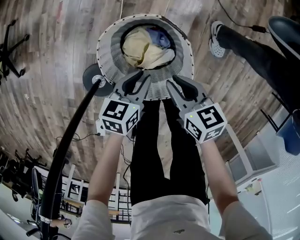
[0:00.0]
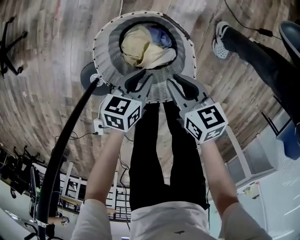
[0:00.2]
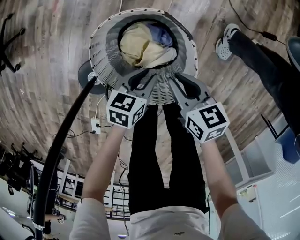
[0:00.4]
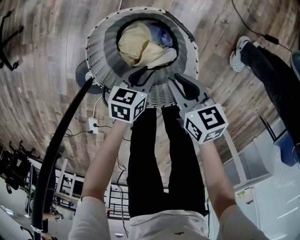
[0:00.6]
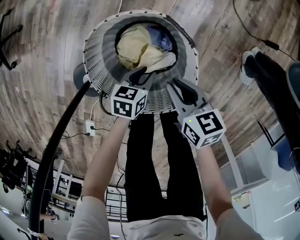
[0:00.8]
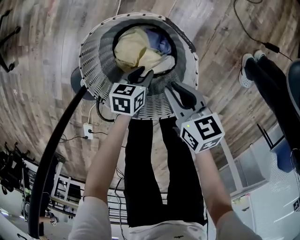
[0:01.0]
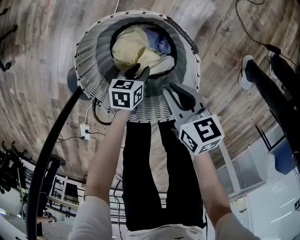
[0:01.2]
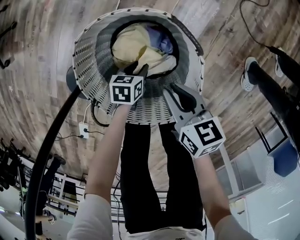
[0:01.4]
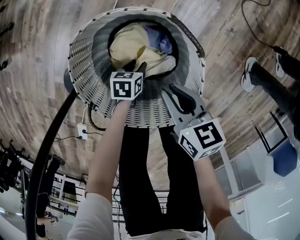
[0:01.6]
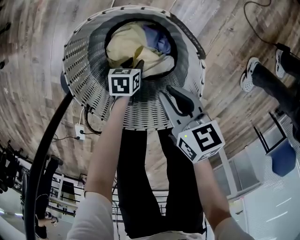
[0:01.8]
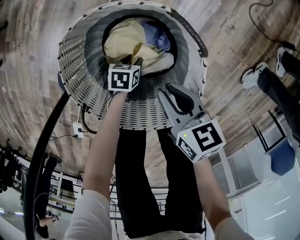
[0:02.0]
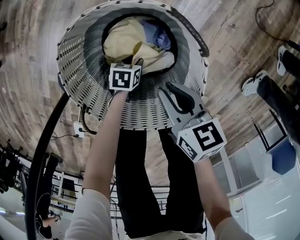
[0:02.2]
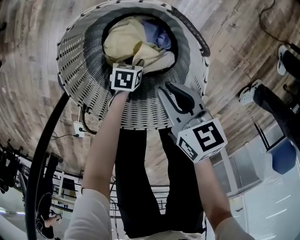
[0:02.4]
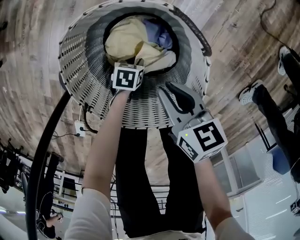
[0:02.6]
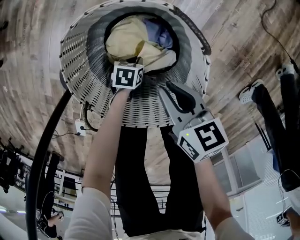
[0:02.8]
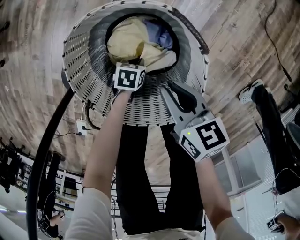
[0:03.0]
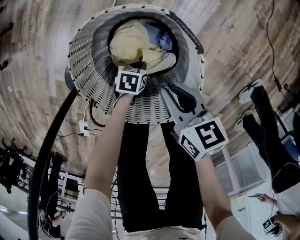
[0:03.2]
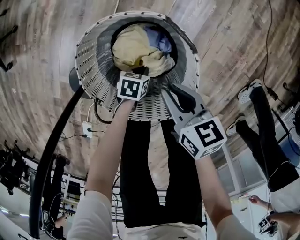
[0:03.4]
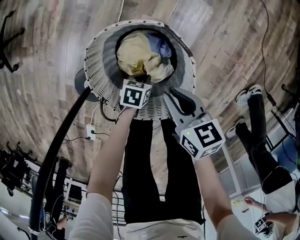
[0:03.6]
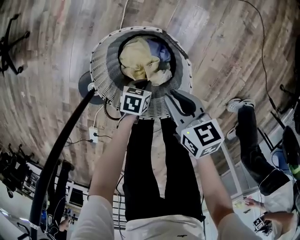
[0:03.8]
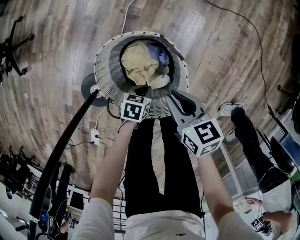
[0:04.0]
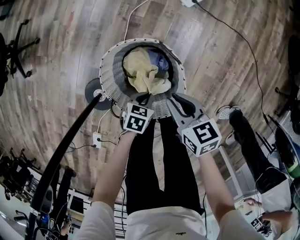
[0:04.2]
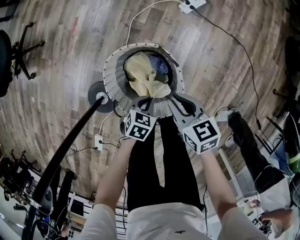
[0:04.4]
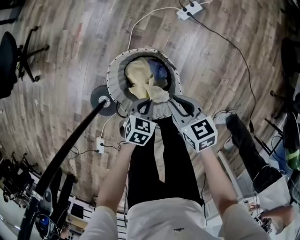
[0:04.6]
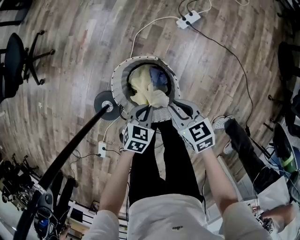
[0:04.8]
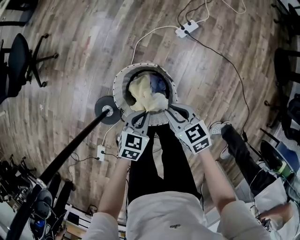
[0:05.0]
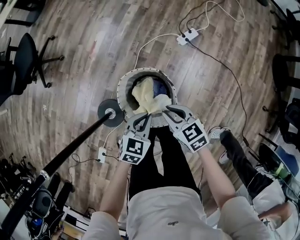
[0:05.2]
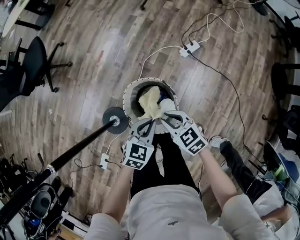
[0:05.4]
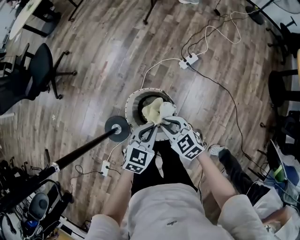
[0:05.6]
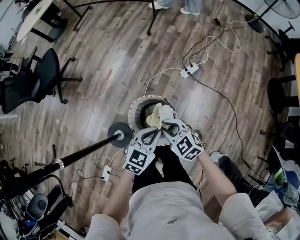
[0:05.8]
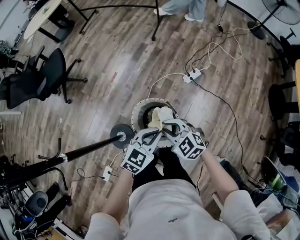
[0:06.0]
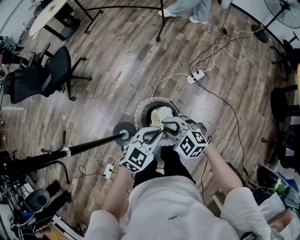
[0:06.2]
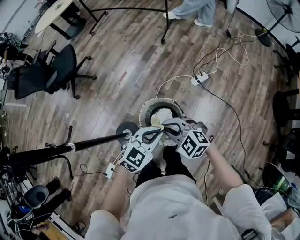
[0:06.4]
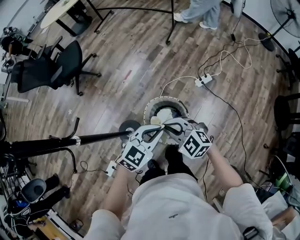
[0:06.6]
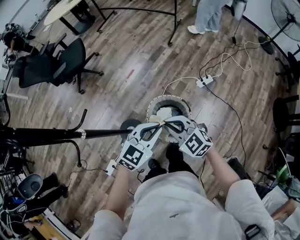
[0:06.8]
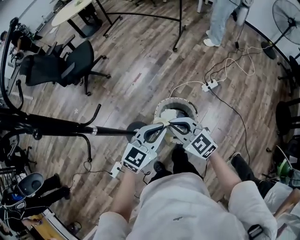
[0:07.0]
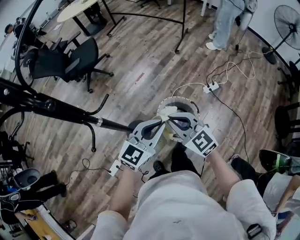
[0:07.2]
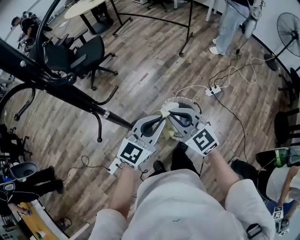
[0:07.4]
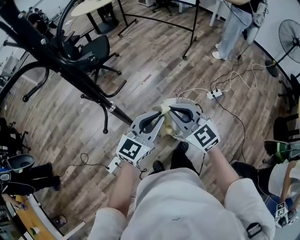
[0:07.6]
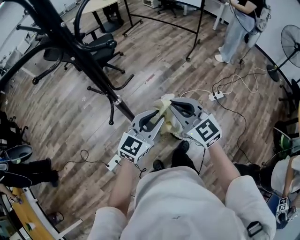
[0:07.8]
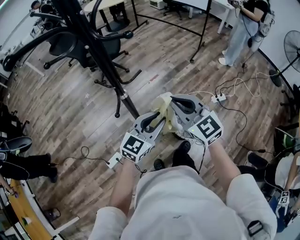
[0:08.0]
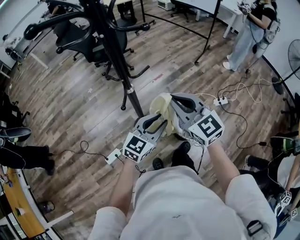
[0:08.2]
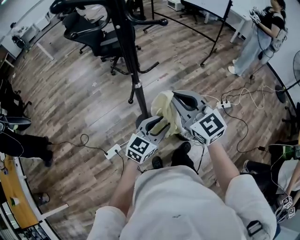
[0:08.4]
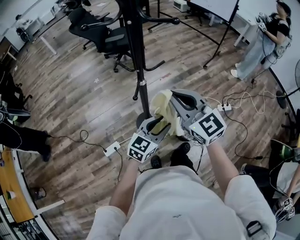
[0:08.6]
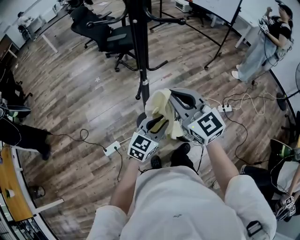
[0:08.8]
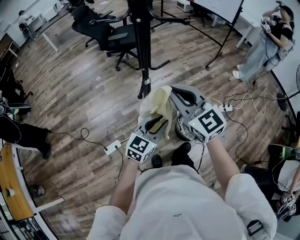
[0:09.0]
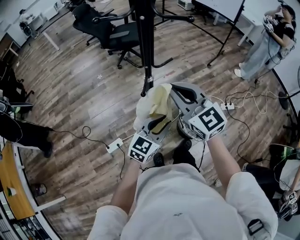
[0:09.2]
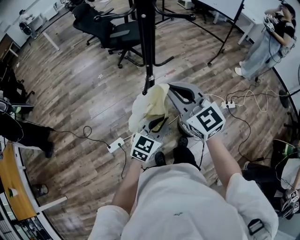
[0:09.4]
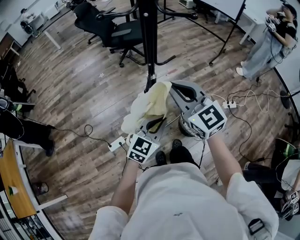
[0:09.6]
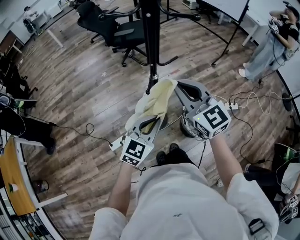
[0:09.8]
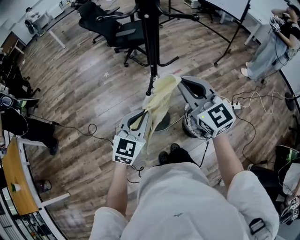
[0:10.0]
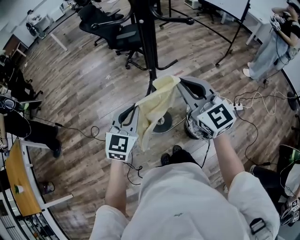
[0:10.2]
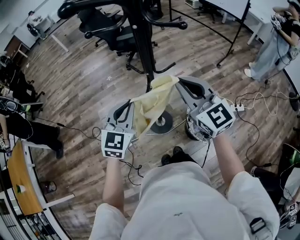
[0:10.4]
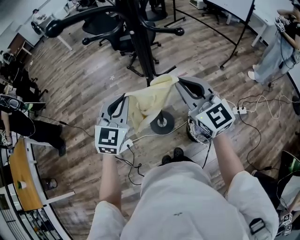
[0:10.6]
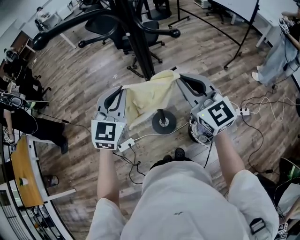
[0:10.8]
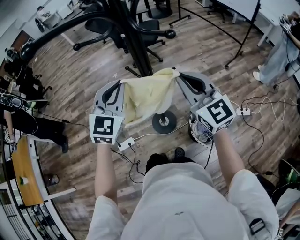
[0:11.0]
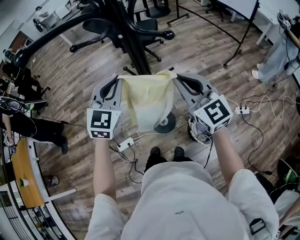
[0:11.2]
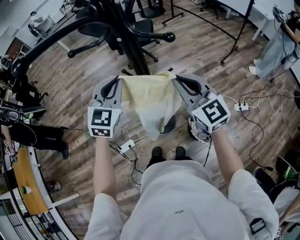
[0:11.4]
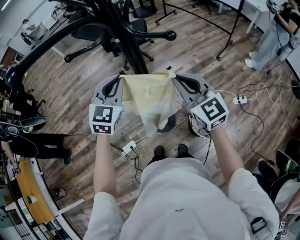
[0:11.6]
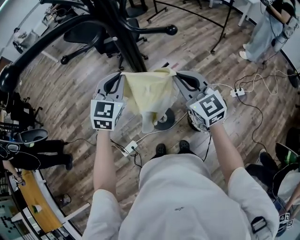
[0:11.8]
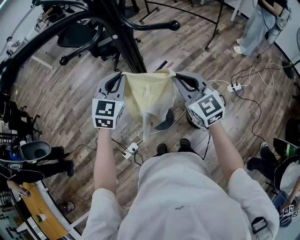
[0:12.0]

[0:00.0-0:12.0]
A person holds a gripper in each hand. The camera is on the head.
0:00.0 to 0:01.6: The right gripper heads downward, covering some 15 cm, while the left gripper goes about 30 cm downward, and swivels approximately 30 degrees.
0:01.6 to 0:03.0: The left gripper closes its fingers.
0:03.0 to 0:04.4: The left gripper goes some 30 cm upward, and turns by approximately 30 degrees, while the right gripper moves upward, approximately 20 cm.
0:04.4 to 0:06.0: The right gripper heads upward, covering about 25 cm, and rotates around the line of its fingers by some 50 degrees, counterclockwise from behind. The left gripper heads upward, covering approximately 40 cm, and changes its angle by some 40 degrees.
0:06.0 to 0:07.6: The grippers both shift to the left, upward and backward by some 30 cm. The left gripper swivels about 30 degrees, while the right gripper rotates roughly 20 degrees.
0:07.6 to 0:09.0: The right gripper is displaced to the left and upward by about 15 cm. Meanwhile the left gripper moves to the left, backward and downward, about 15 cm.
0:09.0 to 0:10.4: The left gripper shifts approximately 20 cm to the left, upward and forward, and turns by about 30 degrees.
0:10.4 to 0:12.0: The right gripper is displaced forward and downward by roughly 10 cm, while the left gripper shifts about 15 cm forward.

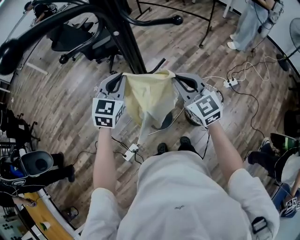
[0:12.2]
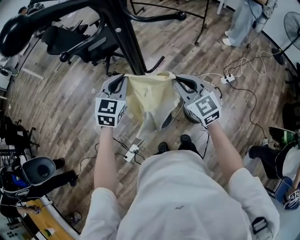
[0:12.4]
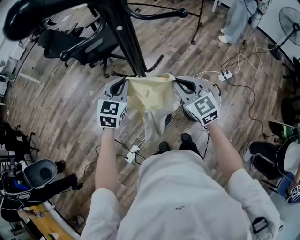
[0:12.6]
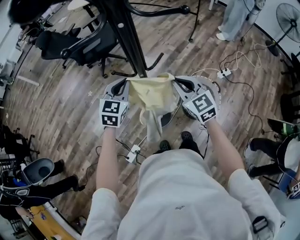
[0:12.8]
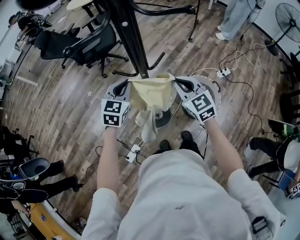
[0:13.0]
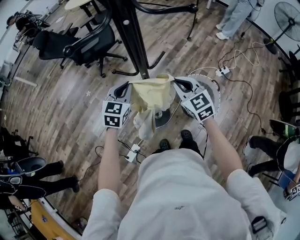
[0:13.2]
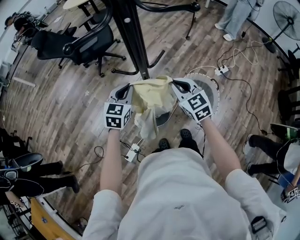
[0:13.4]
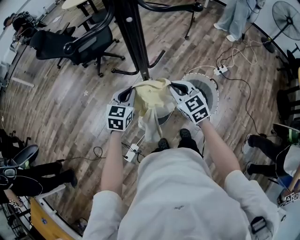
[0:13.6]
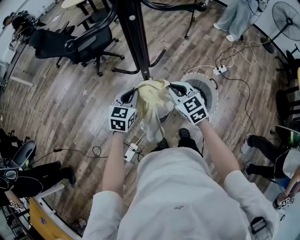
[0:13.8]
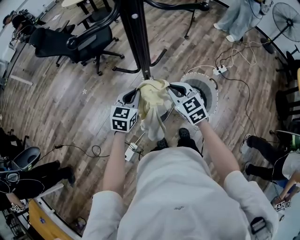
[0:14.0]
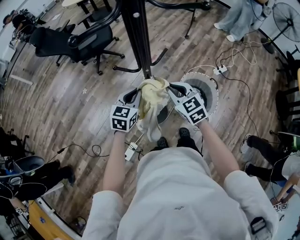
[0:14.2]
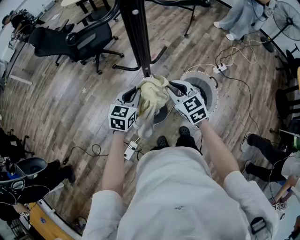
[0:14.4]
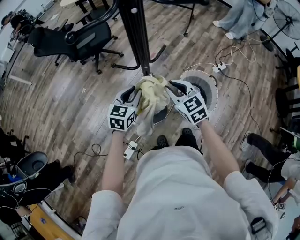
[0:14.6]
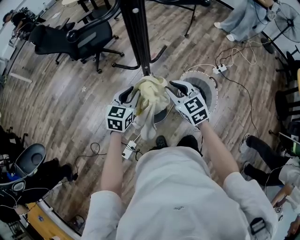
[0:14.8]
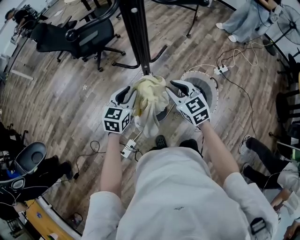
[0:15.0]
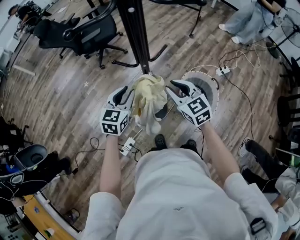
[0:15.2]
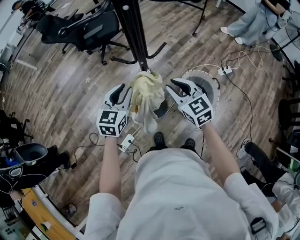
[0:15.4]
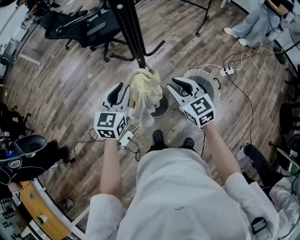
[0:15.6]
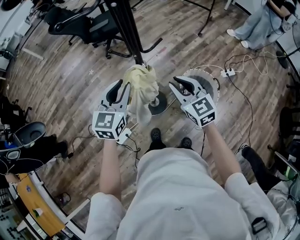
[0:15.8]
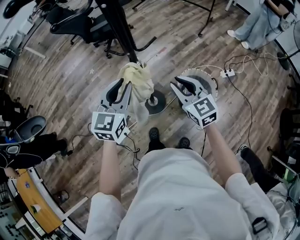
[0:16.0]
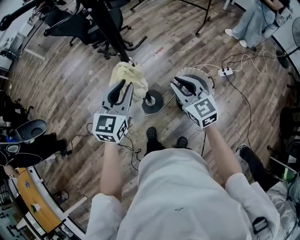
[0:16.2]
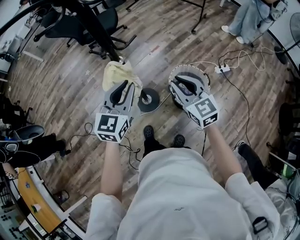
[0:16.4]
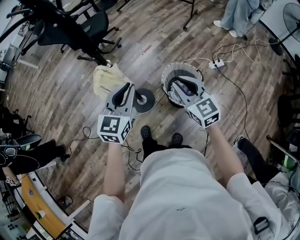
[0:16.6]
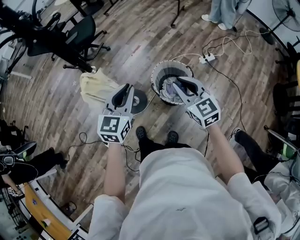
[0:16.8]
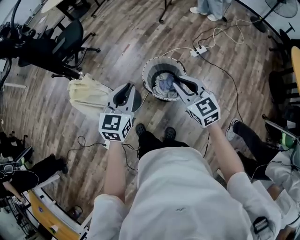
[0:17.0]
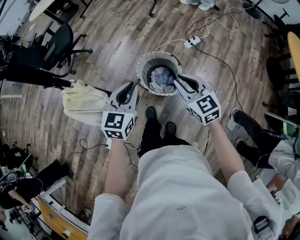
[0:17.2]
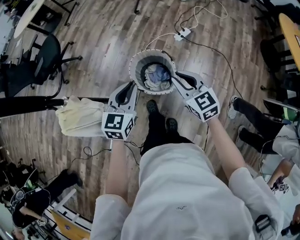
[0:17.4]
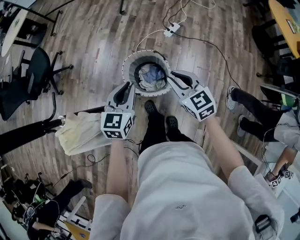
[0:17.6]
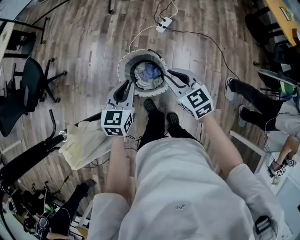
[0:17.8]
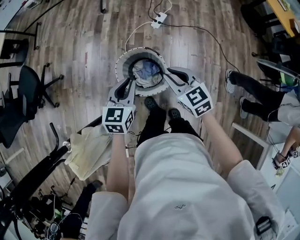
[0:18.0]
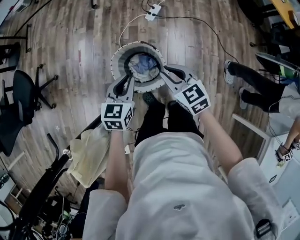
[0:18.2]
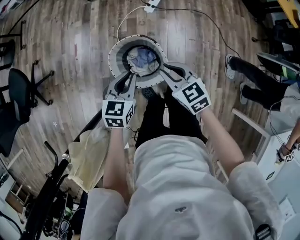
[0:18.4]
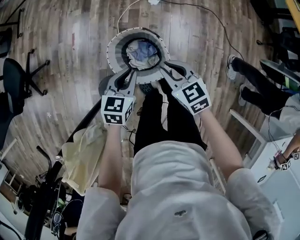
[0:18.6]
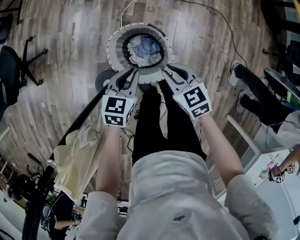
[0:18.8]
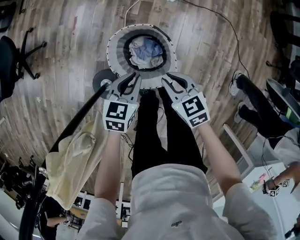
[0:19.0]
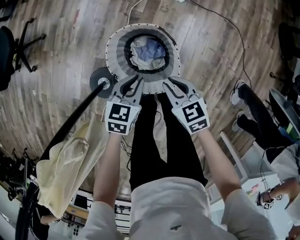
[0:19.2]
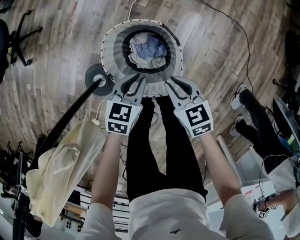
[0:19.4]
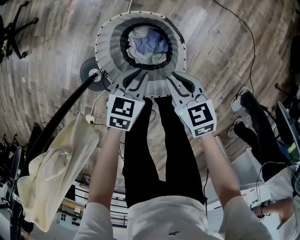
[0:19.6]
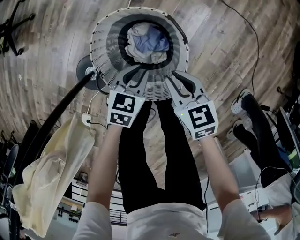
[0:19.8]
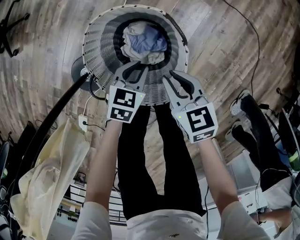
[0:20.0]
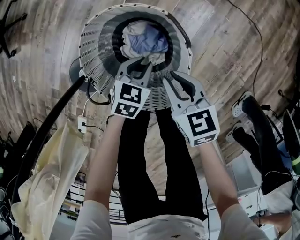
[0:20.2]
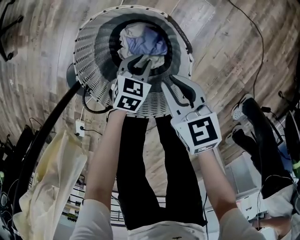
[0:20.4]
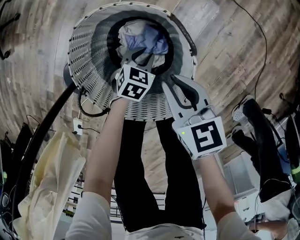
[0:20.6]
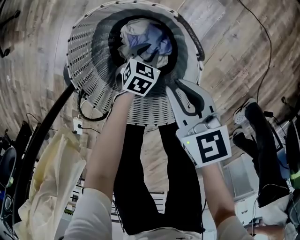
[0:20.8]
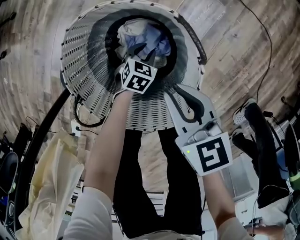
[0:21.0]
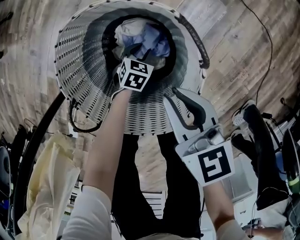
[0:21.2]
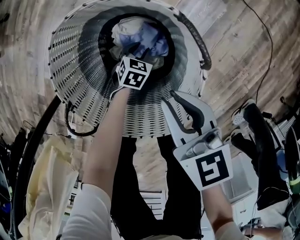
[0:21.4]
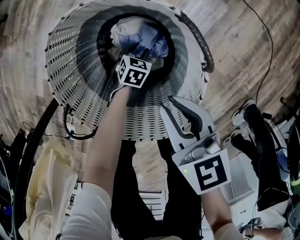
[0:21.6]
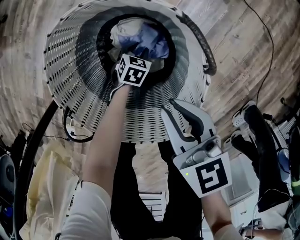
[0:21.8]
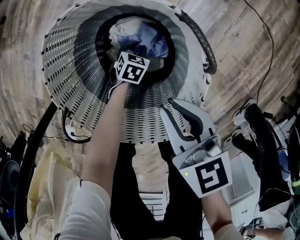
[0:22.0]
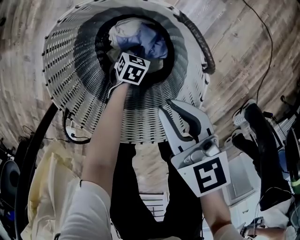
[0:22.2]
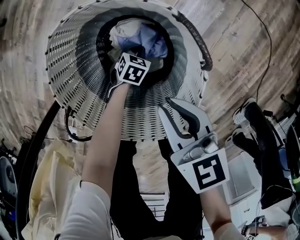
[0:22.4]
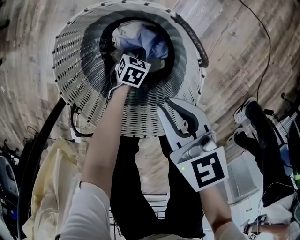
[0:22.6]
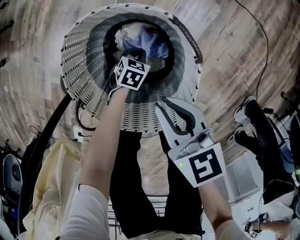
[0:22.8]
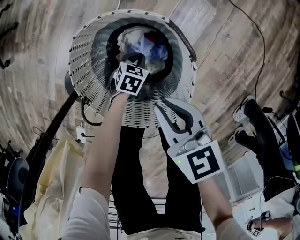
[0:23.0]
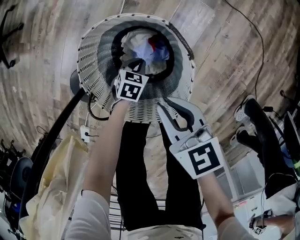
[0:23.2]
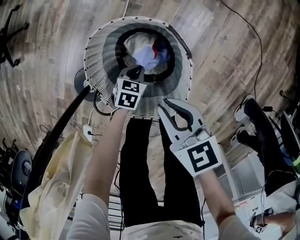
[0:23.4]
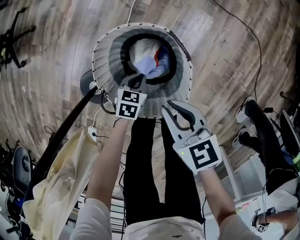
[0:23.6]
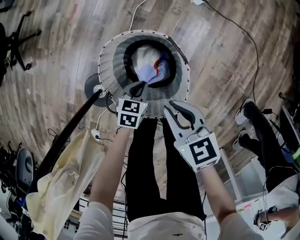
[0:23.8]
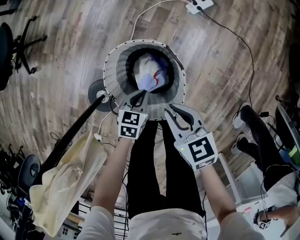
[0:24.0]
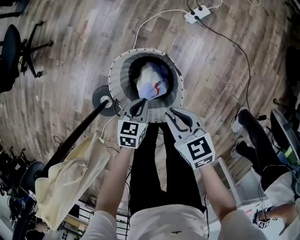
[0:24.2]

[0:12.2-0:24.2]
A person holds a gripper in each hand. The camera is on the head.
0:12.2 to 0:13.8: Both grippers move downward, roughly 15 cm. The left gripper swivels some 20 degrees.
0:13.8 to 0:15.2: The left gripper opens. The right gripper opens up.
0:15.2 to 0:16.6: The right gripper goes roughly 20 cm to the right and backward; the left gripper moves to the right, backward and upward, some 25 cm.
0:16.6 to 0:18.2: The left gripper ends up about 35 cm from where it was, and rotates some 40 degrees, while the right gripper moves approximately 25 cm, and turns by roughly 40 degrees.
0:18.2 to 0:19.8: Both grippers travel together downward, some 35 cm. The right gripper changes its angle by roughly 20 degrees. Meanwhile the left gripper turns by about 20 degrees.
0:19.8 to 0:21.2: The right gripper is displaced downward by roughly 5 cm. Meanwhile the left gripper shifts approximately 30 cm downward.
0:21.2 to 0:22.6: The left gripper closes its fingers.
0:22.6 to 0:24.2: The right gripper shifts roughly 20 cm upward, while the left gripper moves upward, roughly 40 cm, and turns by some 20 degrees.
